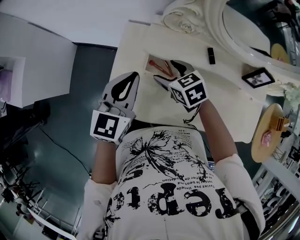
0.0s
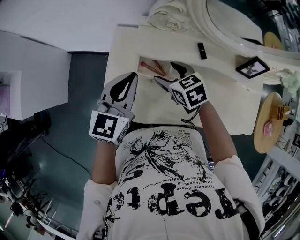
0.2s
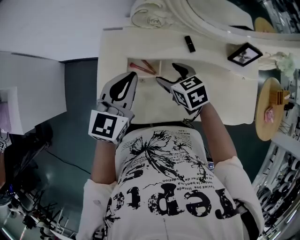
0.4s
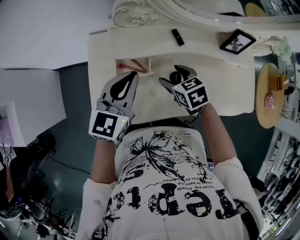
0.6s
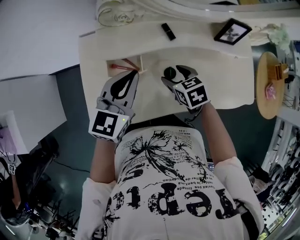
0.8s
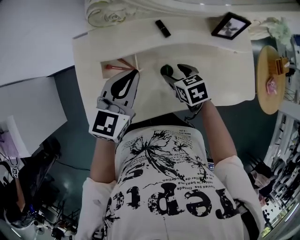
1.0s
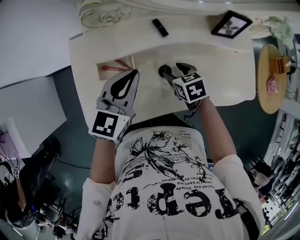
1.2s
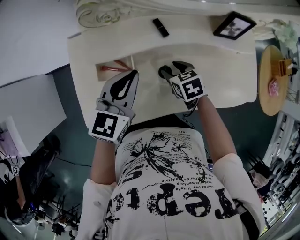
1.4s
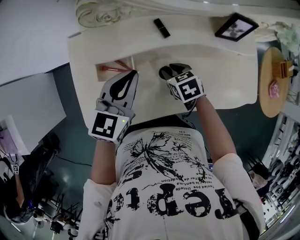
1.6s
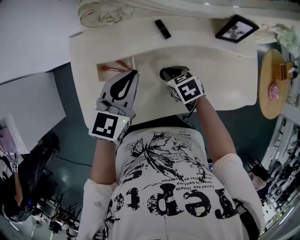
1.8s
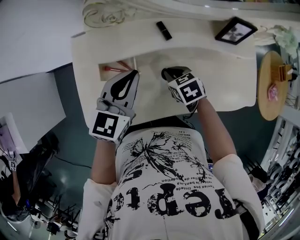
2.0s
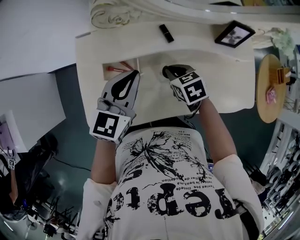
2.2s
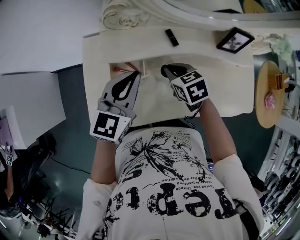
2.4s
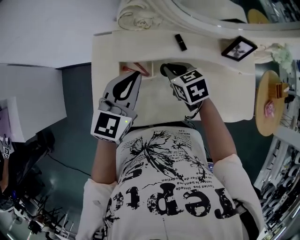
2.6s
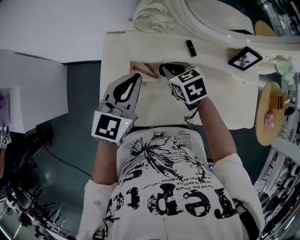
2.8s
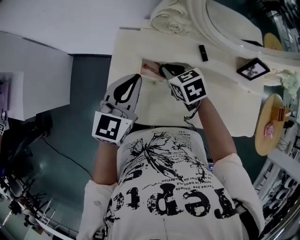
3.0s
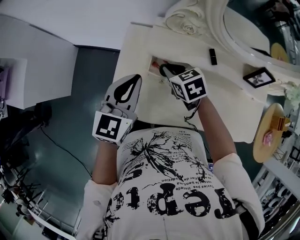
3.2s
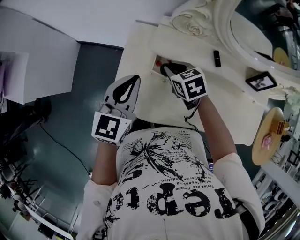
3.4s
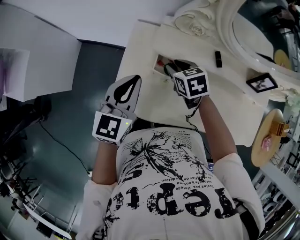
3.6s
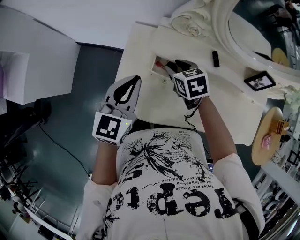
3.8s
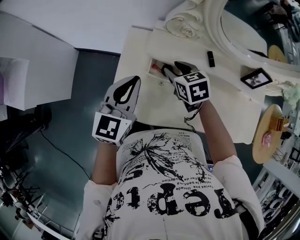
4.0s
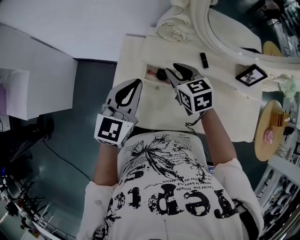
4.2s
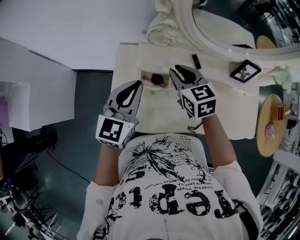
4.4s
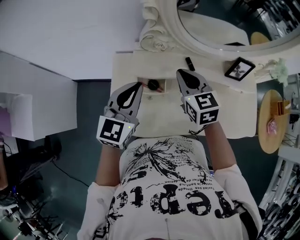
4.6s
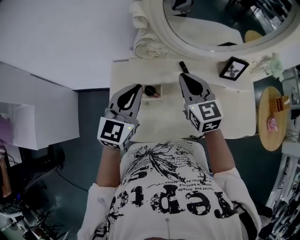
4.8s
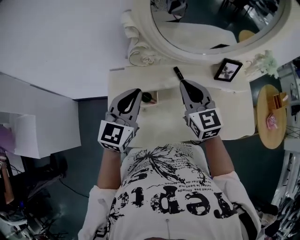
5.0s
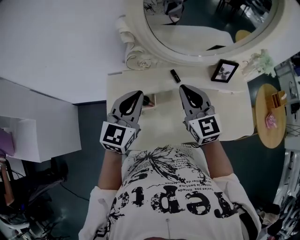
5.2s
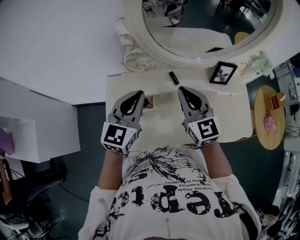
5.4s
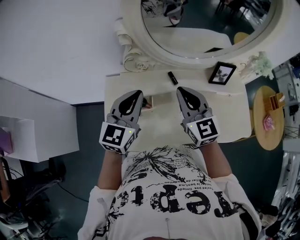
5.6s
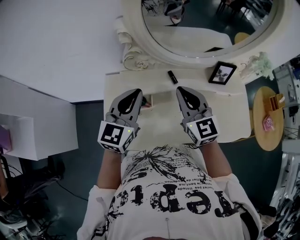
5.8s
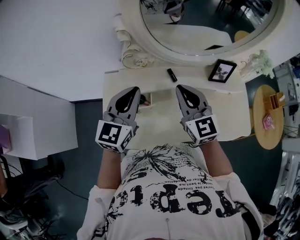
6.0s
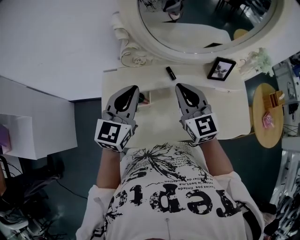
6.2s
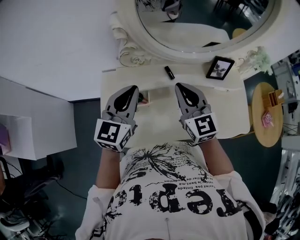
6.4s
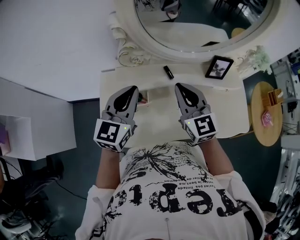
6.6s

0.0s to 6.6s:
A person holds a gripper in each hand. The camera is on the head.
0.0s to 1.6s: The left gripper ends up about 15 cm from where it was, and changes its angle by approximately 20 degrees. The right gripper changes place by roughly 20 cm, changes its angle by roughly 30 degrees, and closes.
1.6s to 3.2s: The left gripper travels to the left by about 20 cm, and turns by roughly 20 degrees, while the right gripper is displaced to the left and upward by some 25 cm, and turns by approximately 20 degrees.
3.2s to 5.0s: The left gripper shifts by some 15 cm, while the right gripper goes about 20 cm upward, and tilts its fingers roughly 40 degrees upward.
5.0s to 6.6s: The grippers make only small movements.

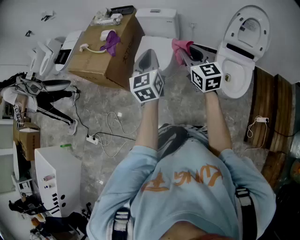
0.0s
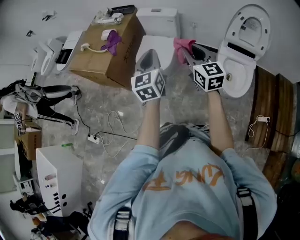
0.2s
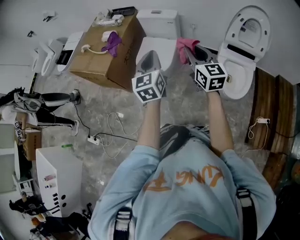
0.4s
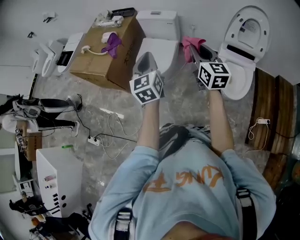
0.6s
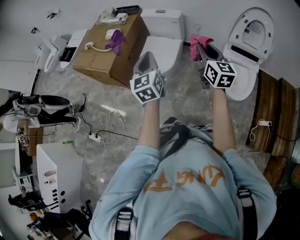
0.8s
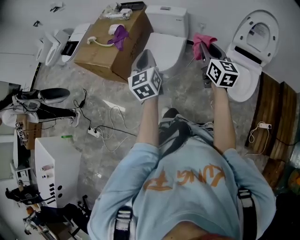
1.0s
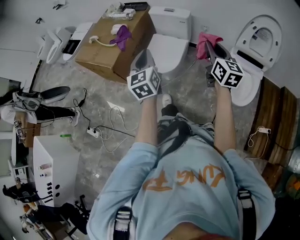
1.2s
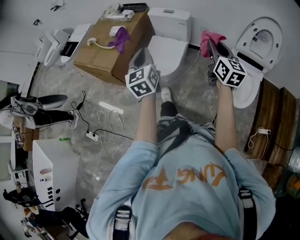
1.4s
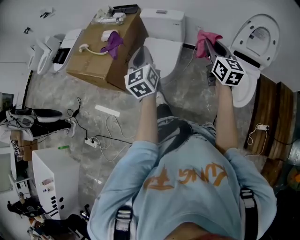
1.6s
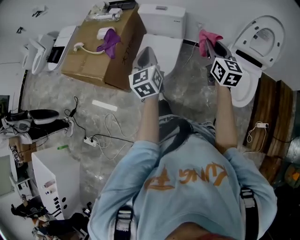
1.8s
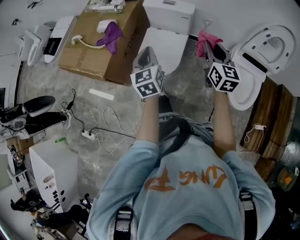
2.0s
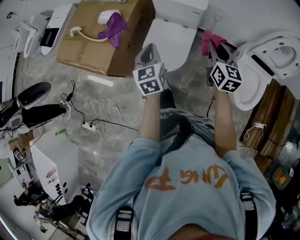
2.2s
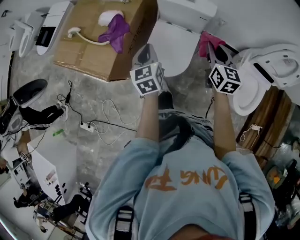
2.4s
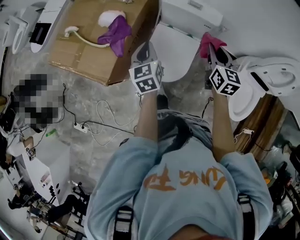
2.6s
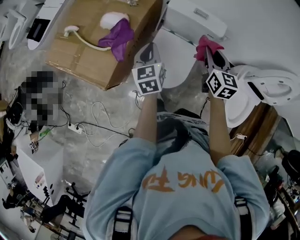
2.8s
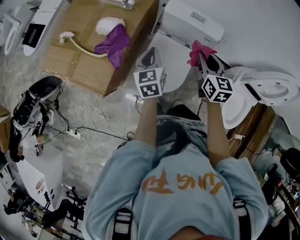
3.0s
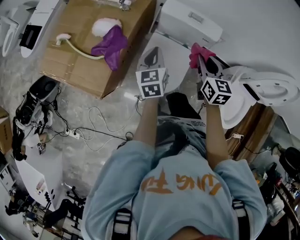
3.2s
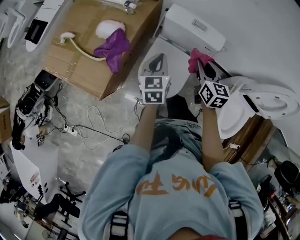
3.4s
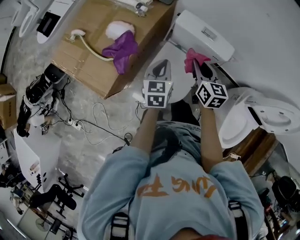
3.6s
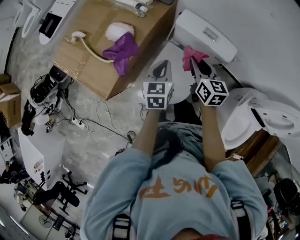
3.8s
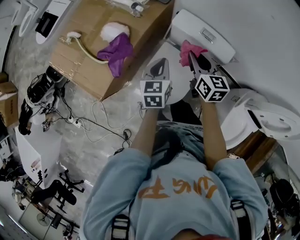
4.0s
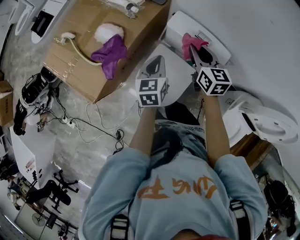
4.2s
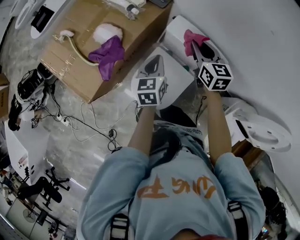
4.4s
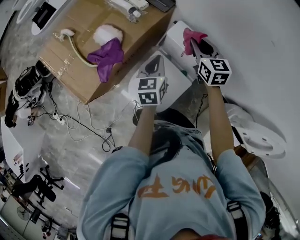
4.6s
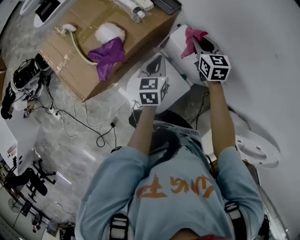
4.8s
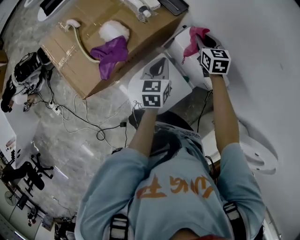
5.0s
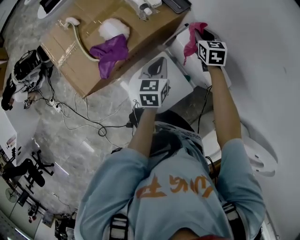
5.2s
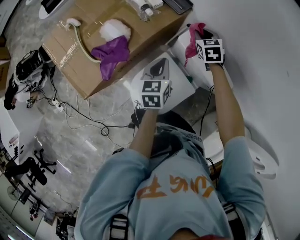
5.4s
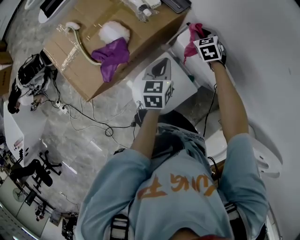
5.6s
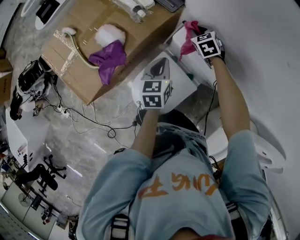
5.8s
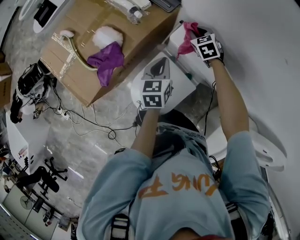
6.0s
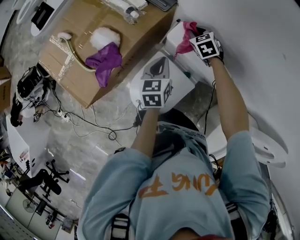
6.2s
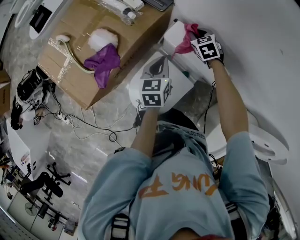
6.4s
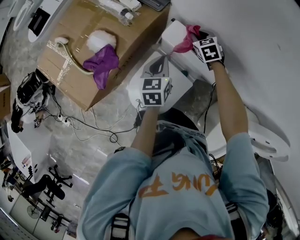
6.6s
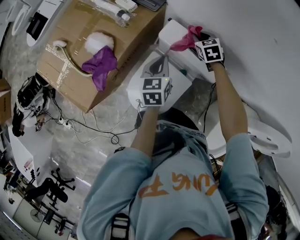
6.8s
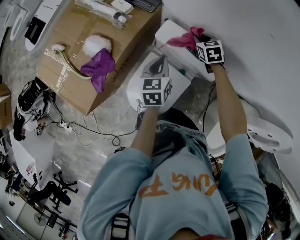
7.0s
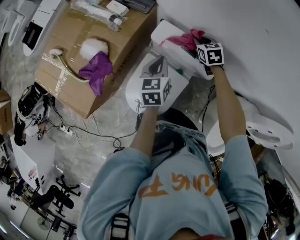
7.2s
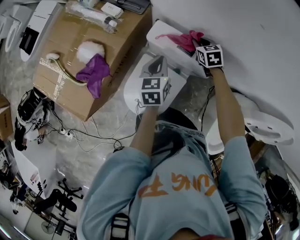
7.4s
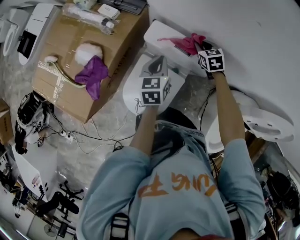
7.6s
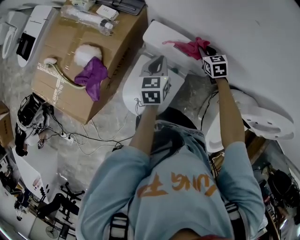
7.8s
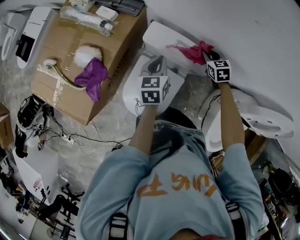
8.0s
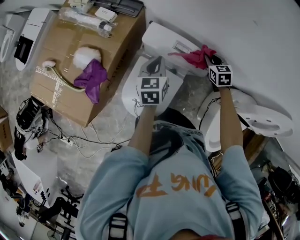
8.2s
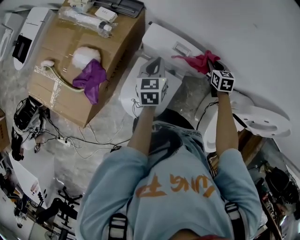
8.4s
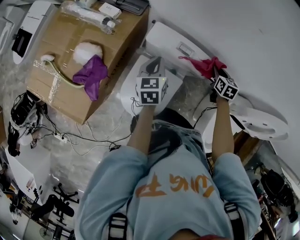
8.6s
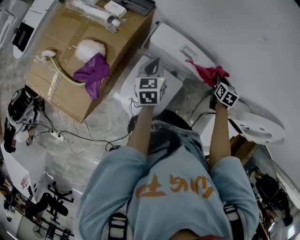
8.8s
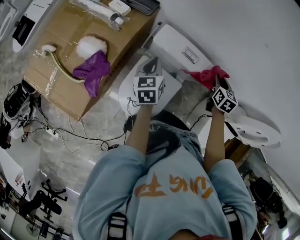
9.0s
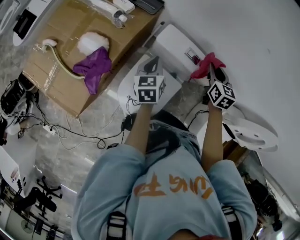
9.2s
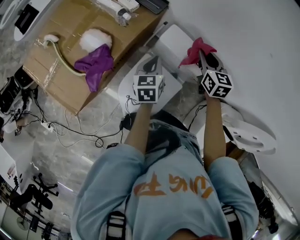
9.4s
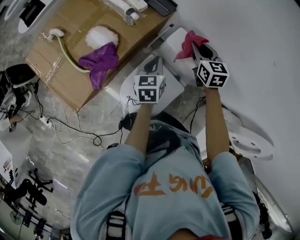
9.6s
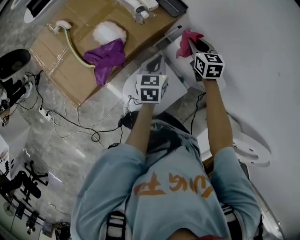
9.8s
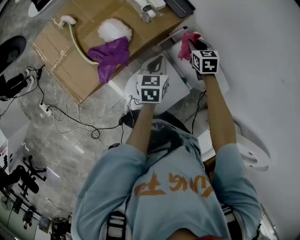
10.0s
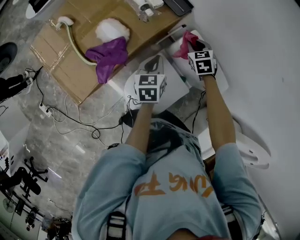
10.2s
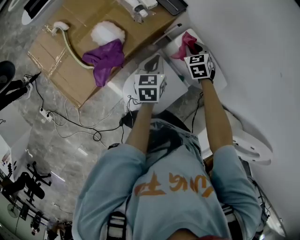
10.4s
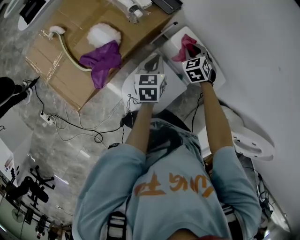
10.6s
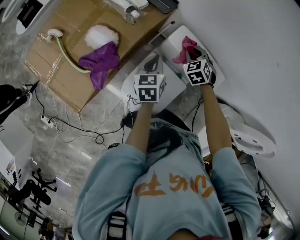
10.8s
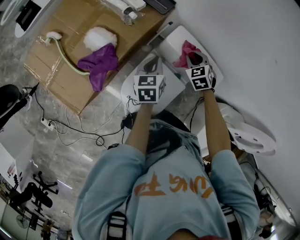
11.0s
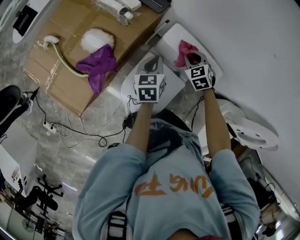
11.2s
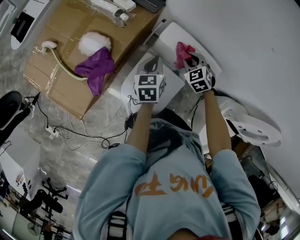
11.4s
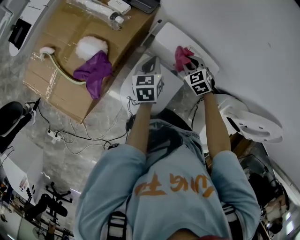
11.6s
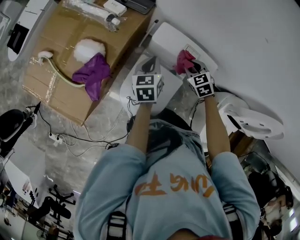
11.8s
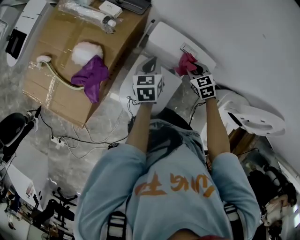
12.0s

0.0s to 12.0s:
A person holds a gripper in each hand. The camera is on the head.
0.0s to 1.6s: The left gripper shifts approximately 10 cm forward and to the left. Meanwhile the right gripper moves forward and to the right, approximately 15 cm.
1.6s to 3.0s: The left gripper goes approximately 40 cm forward and downward, and changes its angle by roughly 20 degrees; the right gripper travels forward, to the left and downward by roughly 40 cm, and swivels roughly 20 degrees.
3.0s to 4.4s: The left gripper travels forward and to the right by some 15 cm. Meanwhile the right gripper travels forward by roughly 20 cm, and rotates some 20 degrees.
4.4s to 6.0s: The left gripper is displaced forward by roughly 5 cm. Meanwhile the right gripper moves forward and downward, roughly 20 cm, and swivels about 40 degrees.
6.0s to 7.6s: The left gripper travels to the right by roughly 10 cm; the right gripper is displaced to the right and backward by about 20 cm, and turns by about 20 degrees.
7.6s to 9.0s: The right gripper moves to the right and backward, approximately 15 cm, and changes its angle by roughly 30 degrees. The left gripper is displaced to the left by some 5 cm.
9.0s to 10.4s: The left gripper ends up approximately 10 cm from where it was. The right gripper changes place by some 30 cm, and rolls counterclockwise, seen from behind, by roughly 50 degrees.
10.4s to 12.0s: The right gripper heads to the right and backward, covering some 20 cm, while the left gripper is displaced to the right by approximately 10 cm.

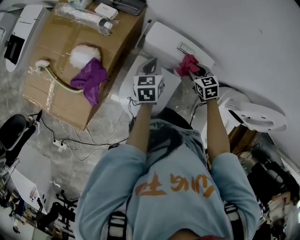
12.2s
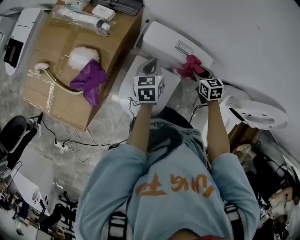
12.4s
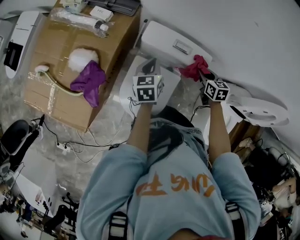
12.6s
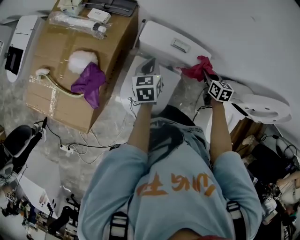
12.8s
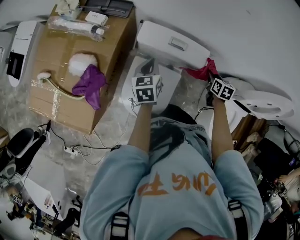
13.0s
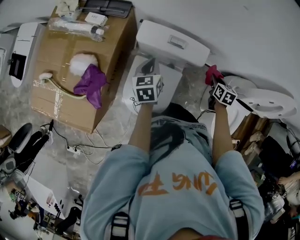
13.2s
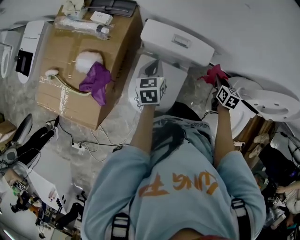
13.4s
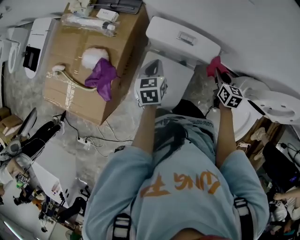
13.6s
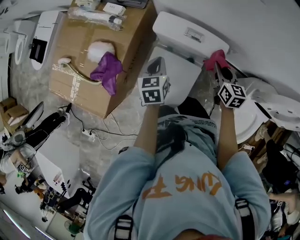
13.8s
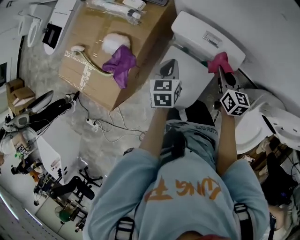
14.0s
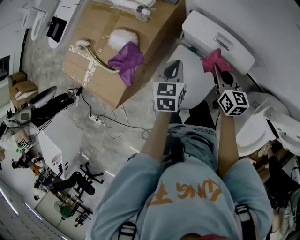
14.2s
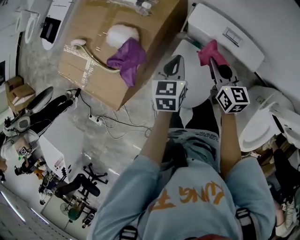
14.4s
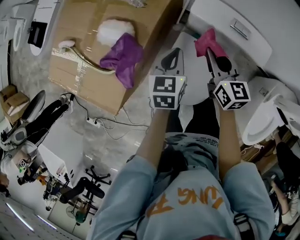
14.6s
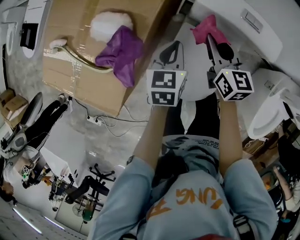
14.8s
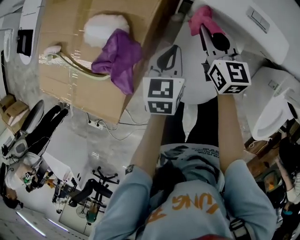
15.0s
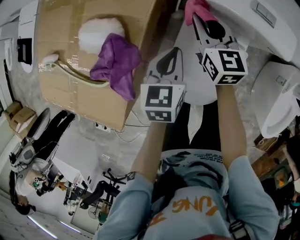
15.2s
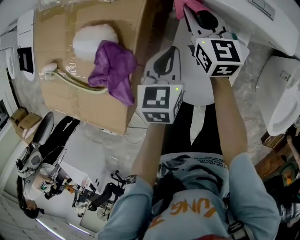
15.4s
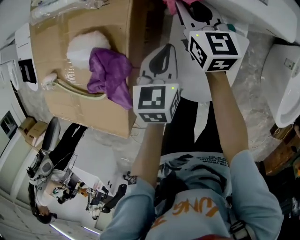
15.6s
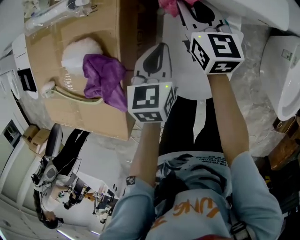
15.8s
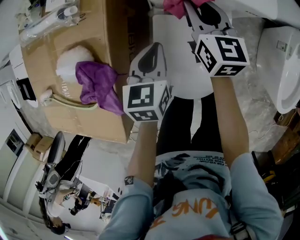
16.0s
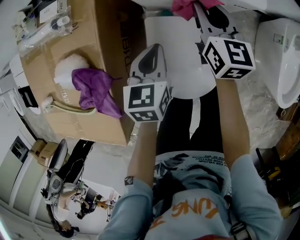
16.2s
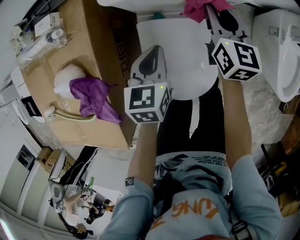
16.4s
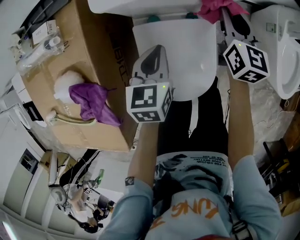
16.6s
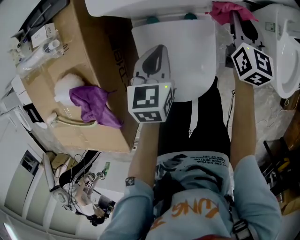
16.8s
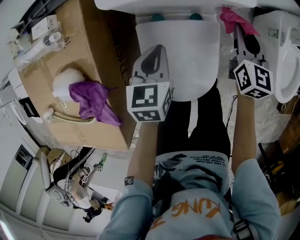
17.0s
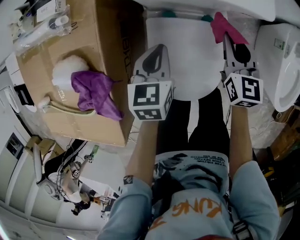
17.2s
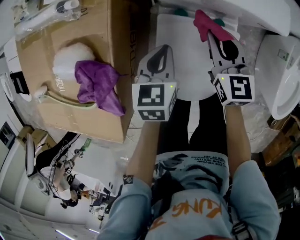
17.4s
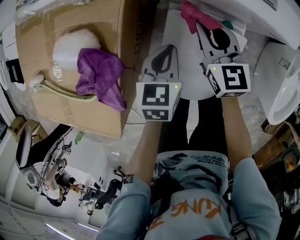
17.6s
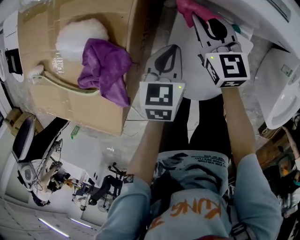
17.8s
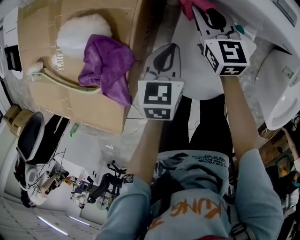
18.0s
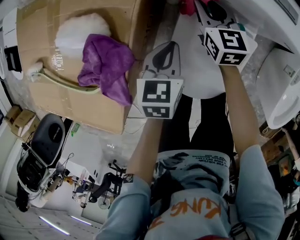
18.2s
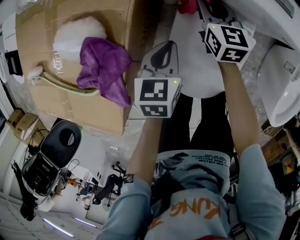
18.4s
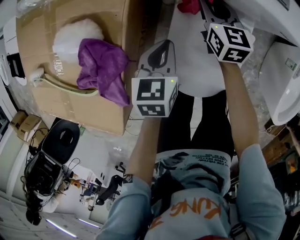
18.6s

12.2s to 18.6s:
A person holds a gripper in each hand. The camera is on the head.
12.2s to 13.8s: The right gripper travels to the right and upward by about 10 cm, and rotates about 40 degrees.
13.8s to 15.4s: The left gripper moves downward and to the left, some 20 cm; the right gripper shifts roughly 30 cm to the left, downward and forward.
15.4s to 17.0s: The right gripper ends up approximately 35 cm from where it was, and changes its angle by approximately 30 degrees. The left gripper changes place by approximately 10 cm.
17.0s to 18.6s: The left gripper ends up approximately 15 cm from where it was. The right gripper changes place by approximately 30 cm, and turns by some 30 degrees.
